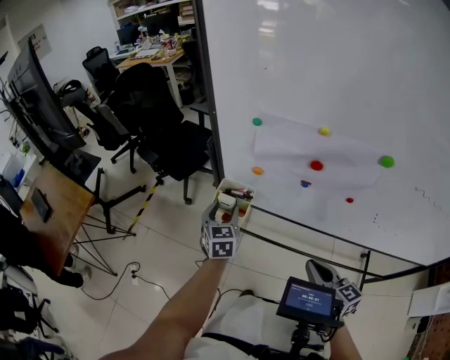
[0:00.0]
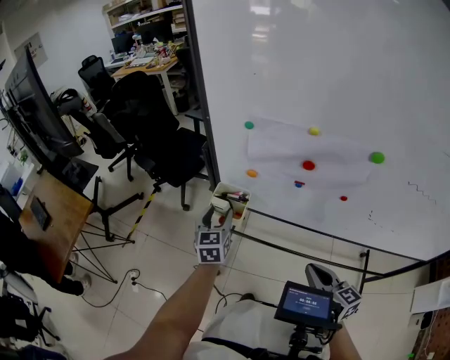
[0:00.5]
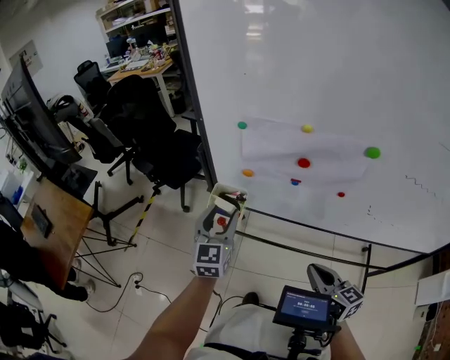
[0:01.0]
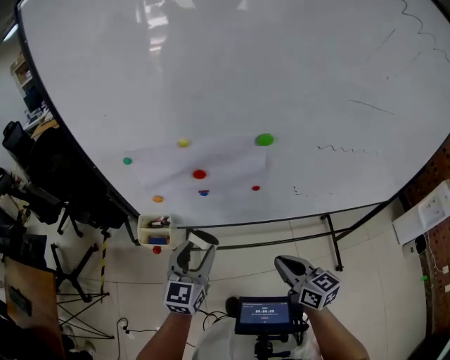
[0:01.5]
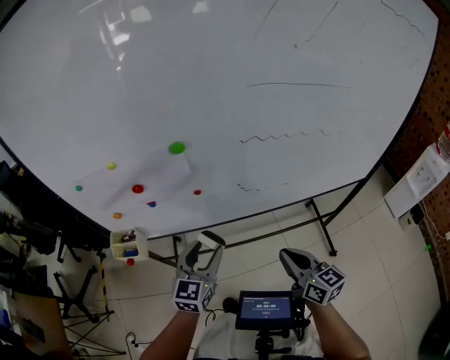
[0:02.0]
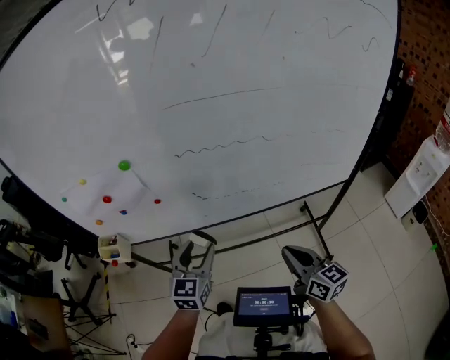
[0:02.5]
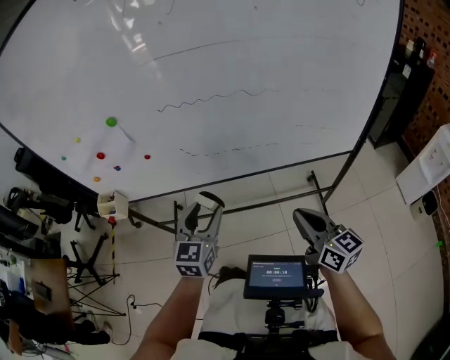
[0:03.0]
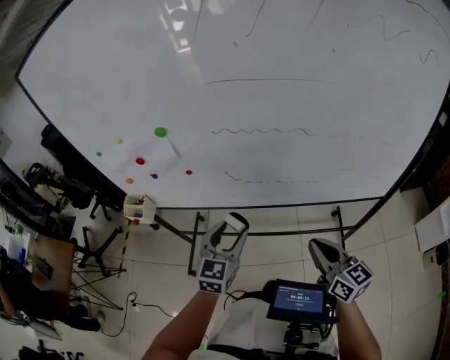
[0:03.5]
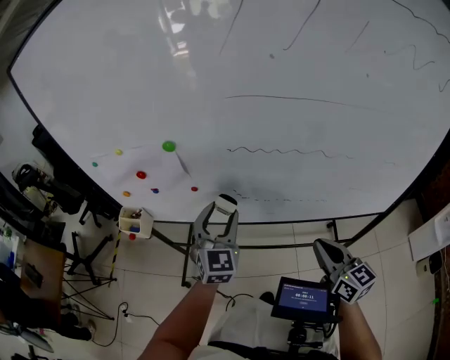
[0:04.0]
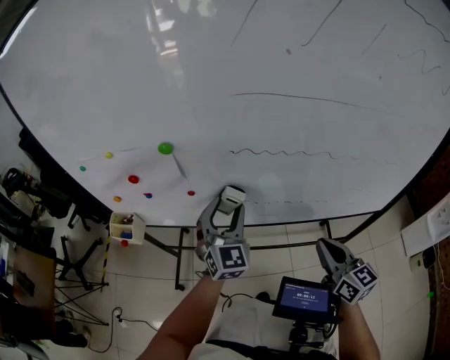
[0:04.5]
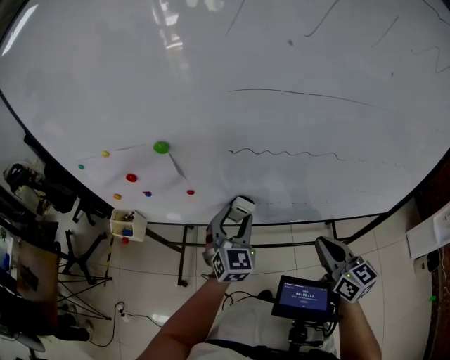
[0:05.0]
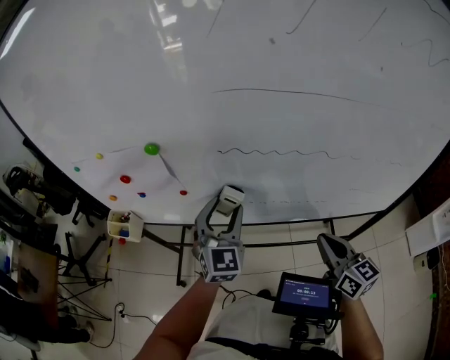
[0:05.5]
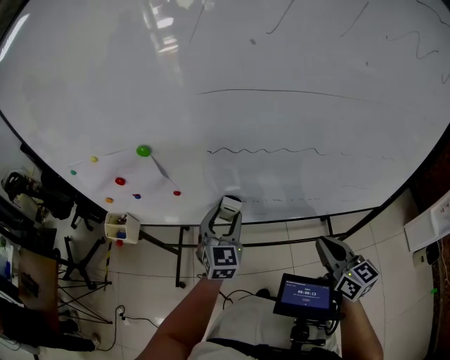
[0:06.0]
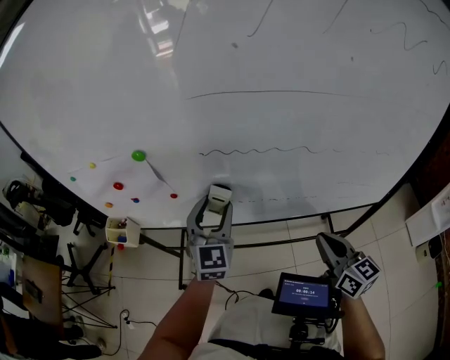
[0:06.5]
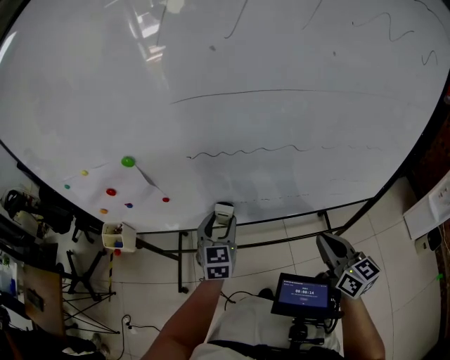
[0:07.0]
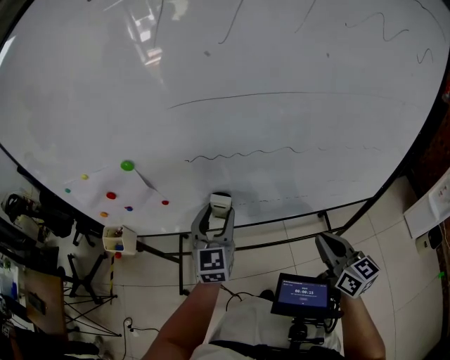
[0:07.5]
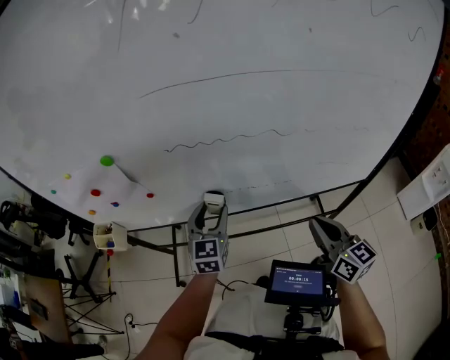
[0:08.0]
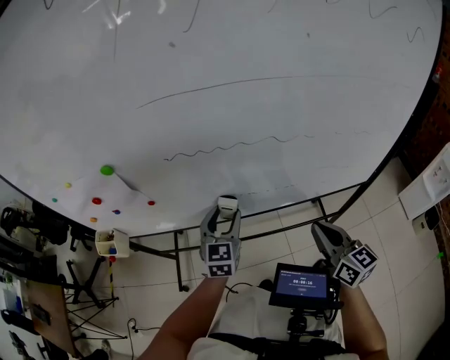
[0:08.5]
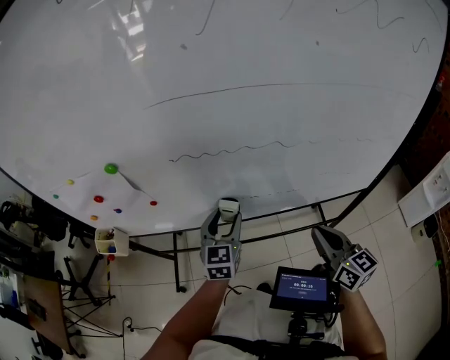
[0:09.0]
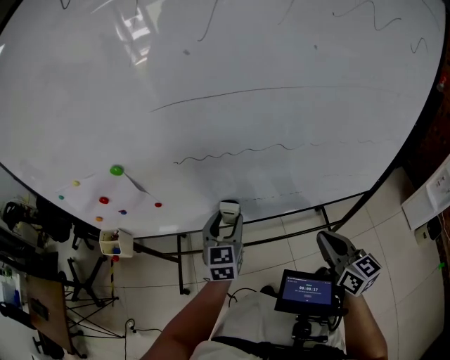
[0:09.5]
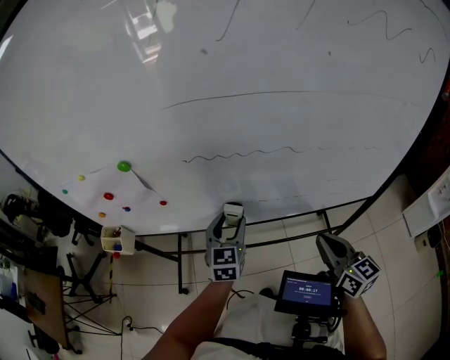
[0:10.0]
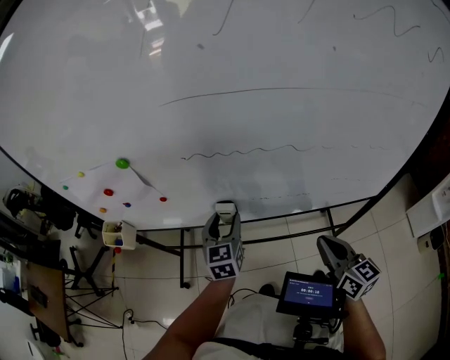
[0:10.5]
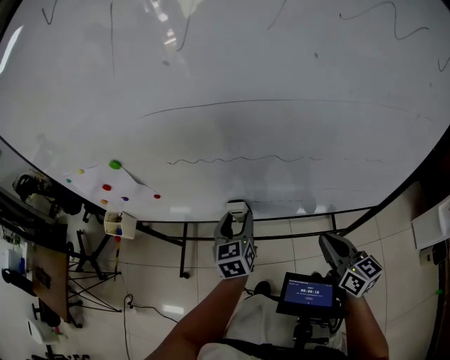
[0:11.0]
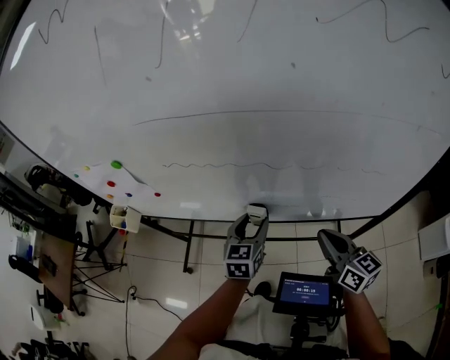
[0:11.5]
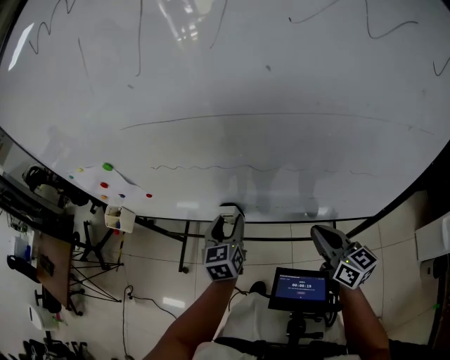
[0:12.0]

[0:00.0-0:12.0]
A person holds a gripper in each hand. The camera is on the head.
0:00.0 to 0:02.0: The right gripper moves some 25 cm, and swivels approximately 30 degrees. The left gripper changes place by some 40 cm, and changes its angle by approximately 50 degrees.
0:02.0 to 0:04.0: The right gripper shifts some 15 cm to the right. Meanwhile the left gripper moves to the right, upward and forward, approximately 15 cm, and turns by approximately 30 degrees.
0:04.0 to 0:06.0: The right gripper moves some 5 cm. The left gripper goes up and down, some 10 cm each way, reversing 2 times.
0:06.0 to 0:08.0: The left gripper goes up and down, some 10 cm each way, reversing 3 times.
0:08.0 to 0:10.0: The grippers make only small movements.
0:10.0 to 0:12.0: The left gripper goes roughly 10 cm to the right, and swivels approximately 20 degrees. The right gripper moves to the right and forward, some 10 cm.

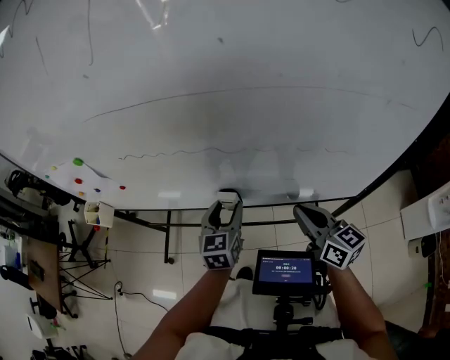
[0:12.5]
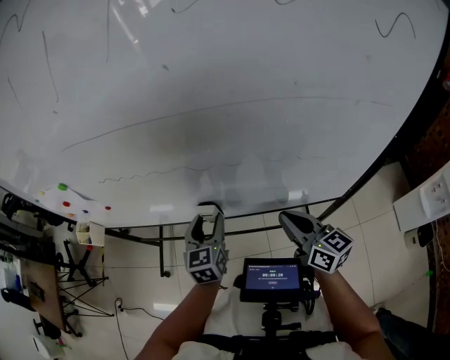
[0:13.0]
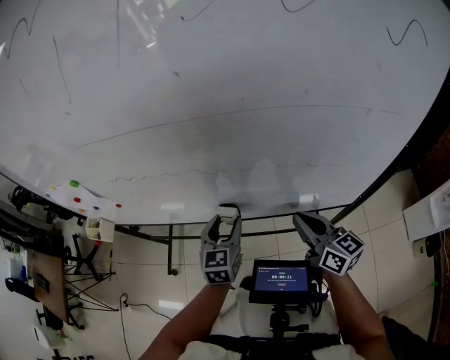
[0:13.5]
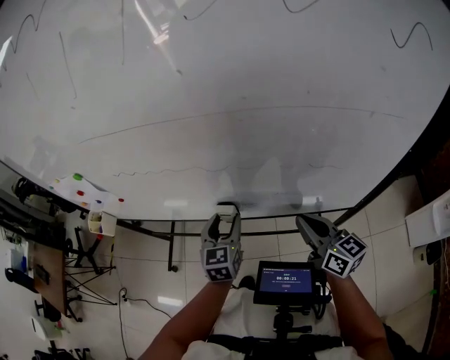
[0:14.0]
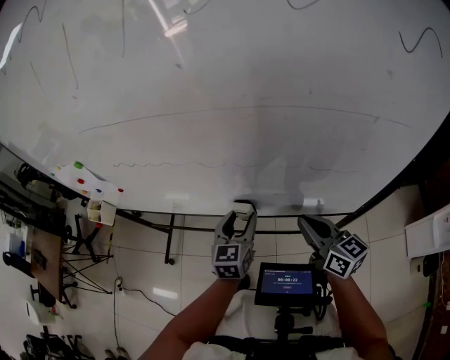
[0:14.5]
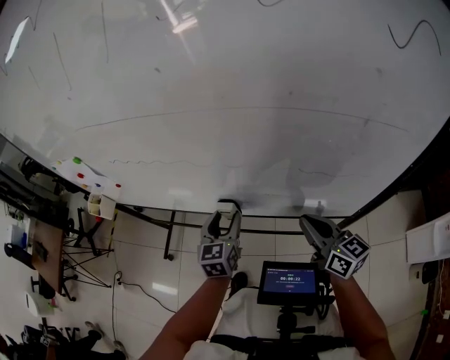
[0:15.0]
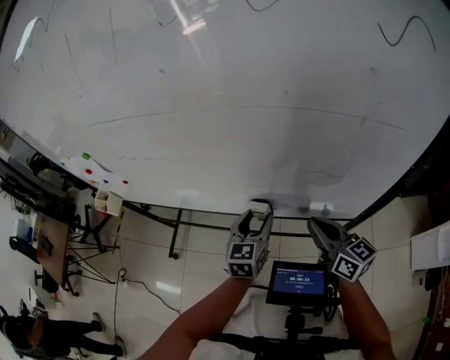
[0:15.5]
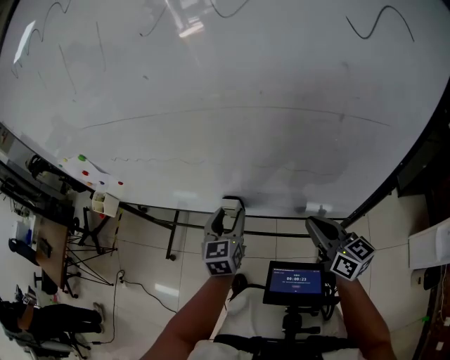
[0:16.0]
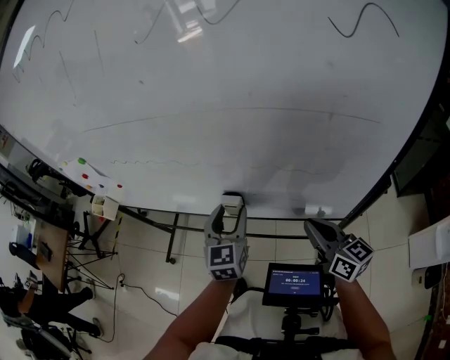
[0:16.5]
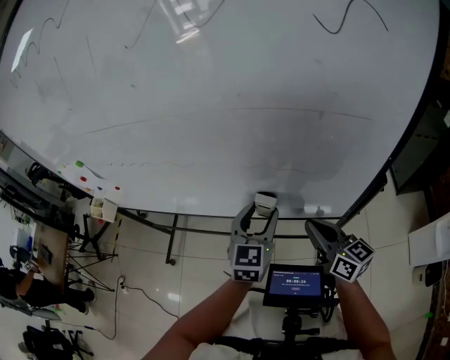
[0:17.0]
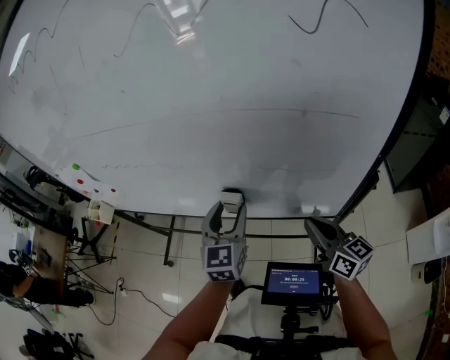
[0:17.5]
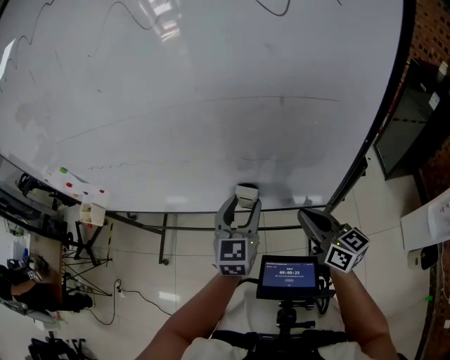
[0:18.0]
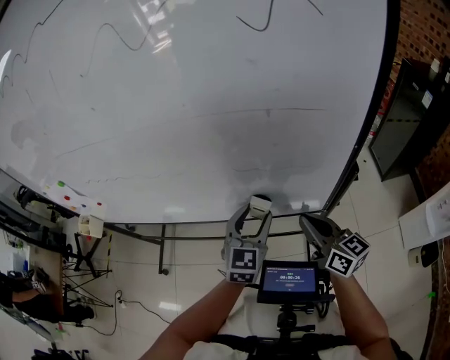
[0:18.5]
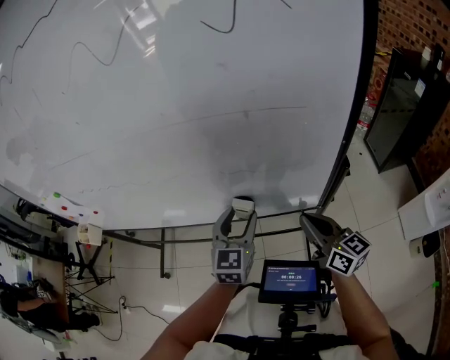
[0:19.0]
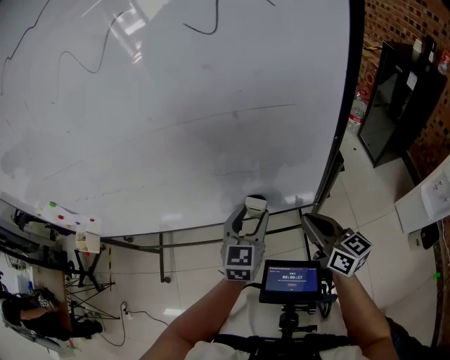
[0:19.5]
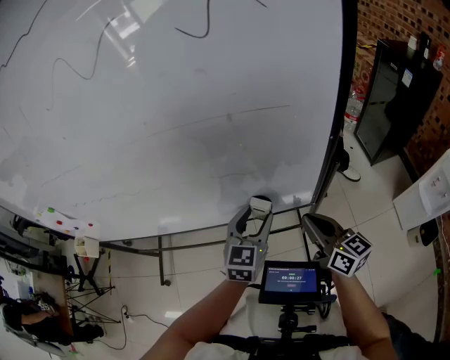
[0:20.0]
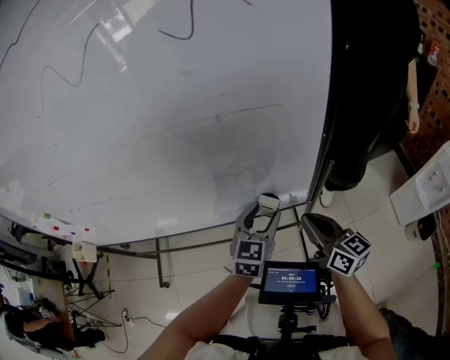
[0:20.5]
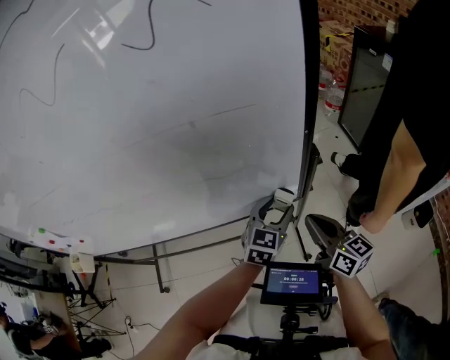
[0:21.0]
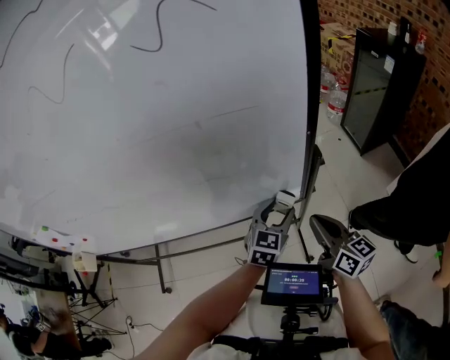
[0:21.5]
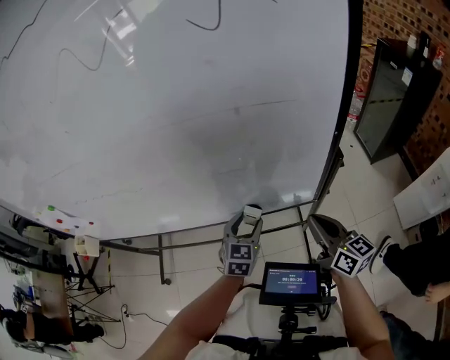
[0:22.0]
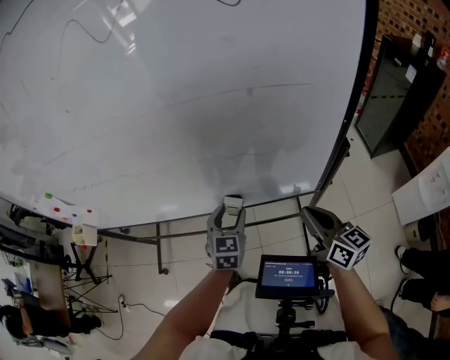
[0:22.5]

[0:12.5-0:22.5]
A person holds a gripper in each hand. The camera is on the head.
0:12.5 to 0:14.5: The two grippers go about 5 cm to the right.
0:14.5 to 0:16.5: The right gripper is displaced to the right by roughly 5 cm. Meanwhile the left gripper goes approximately 5 cm upward.
0:16.5 to 0:18.5: The left gripper moves left and right over some 15 cm, changing direction 2 times, and swivels some 20 degrees; the right gripper heads to the right, covering some 5 cm.
0:18.5 to 0:20.5: Both grippers travel together to the right, about 5 cm.
0:20.5 to 0:22.5: The left gripper moves to the left, roughly 15 cm.

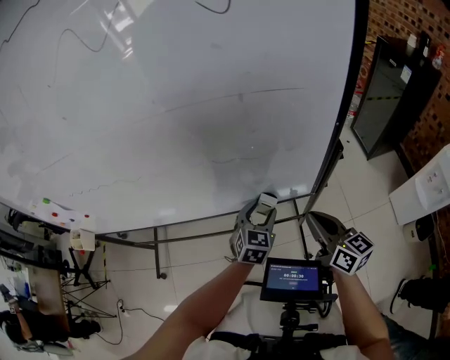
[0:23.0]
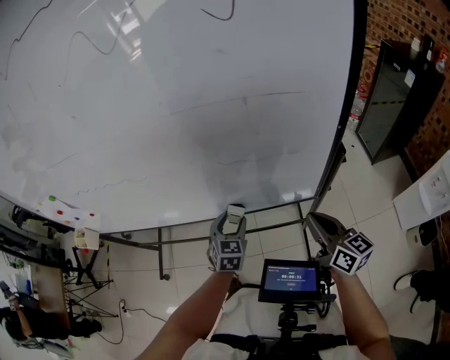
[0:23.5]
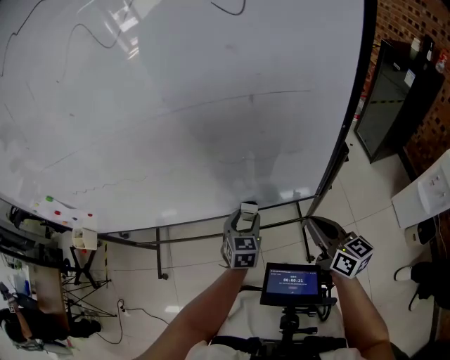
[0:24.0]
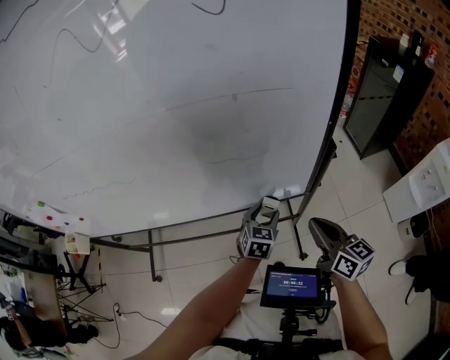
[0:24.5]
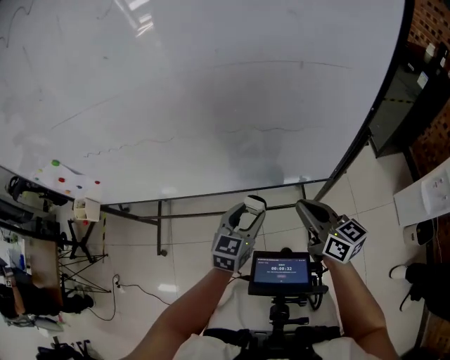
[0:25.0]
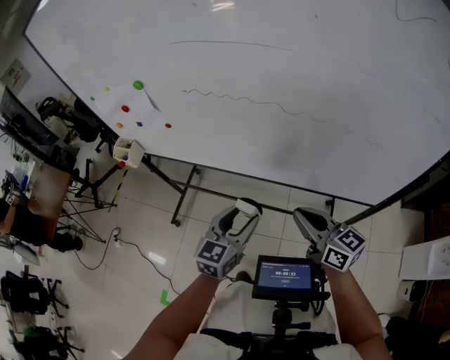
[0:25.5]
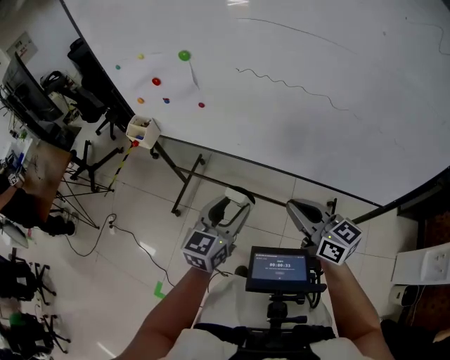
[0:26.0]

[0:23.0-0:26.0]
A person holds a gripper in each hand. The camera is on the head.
0:23.0 to 0:24.5: The left gripper travels to the left and back again, about 10 cm each way.
0:24.5 to 0:26.0: The pair of grippers is taken about 50 cm. The left gripper turns by approximately 40 degrees; the right gripper turns by some 40 degrees.

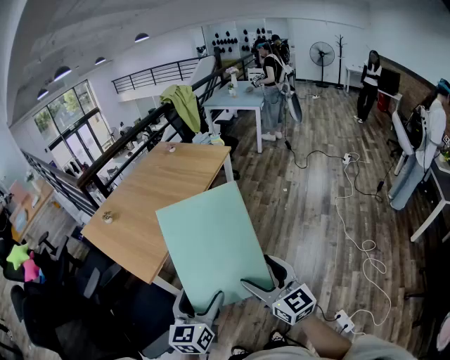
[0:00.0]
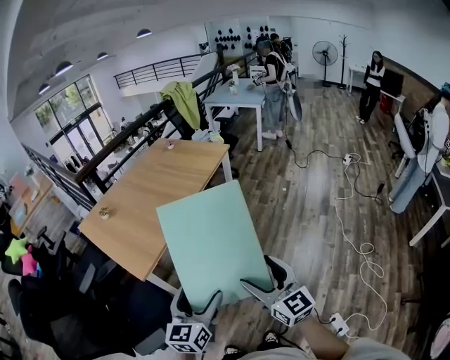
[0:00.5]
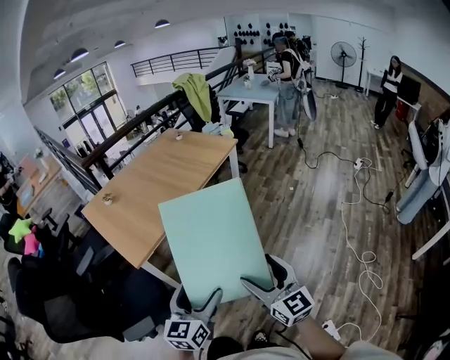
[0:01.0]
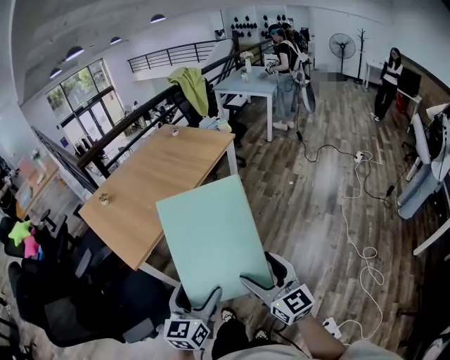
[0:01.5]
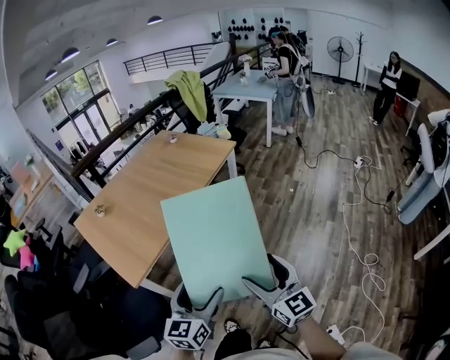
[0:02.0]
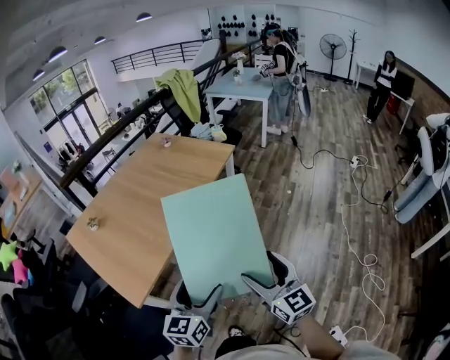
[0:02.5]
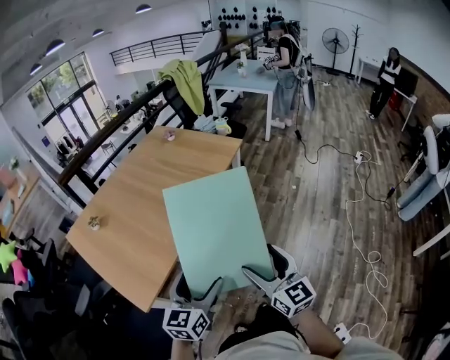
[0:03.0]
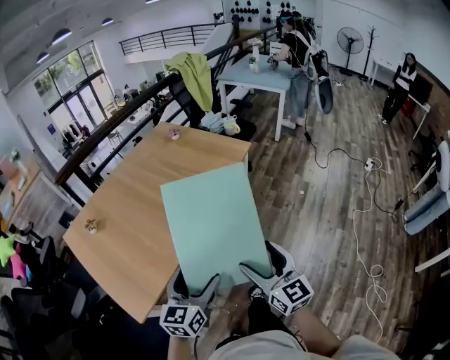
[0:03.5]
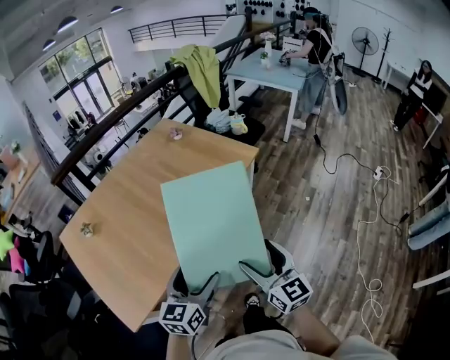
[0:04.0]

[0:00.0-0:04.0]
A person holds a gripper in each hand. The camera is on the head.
0:00.0 to 0:02.0: The grippers both shift forward and to the right by about 10 cm.
0:02.0 to 0:04.0: Both grippers move forward, about 40 cm.
